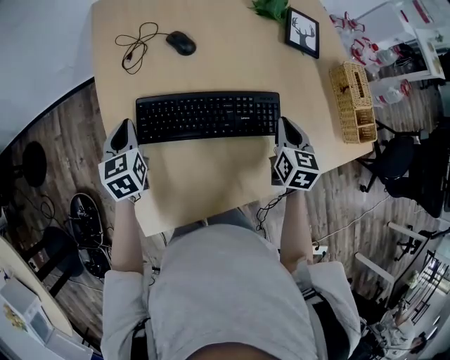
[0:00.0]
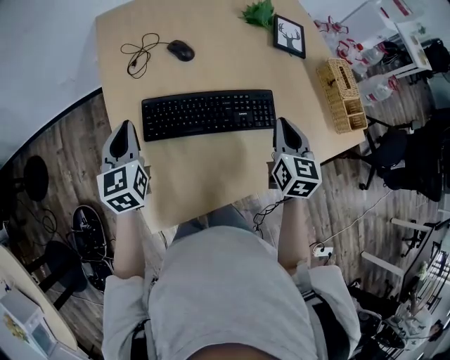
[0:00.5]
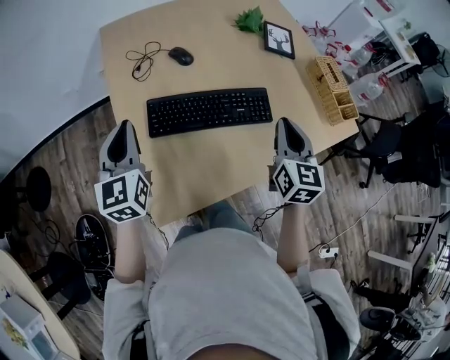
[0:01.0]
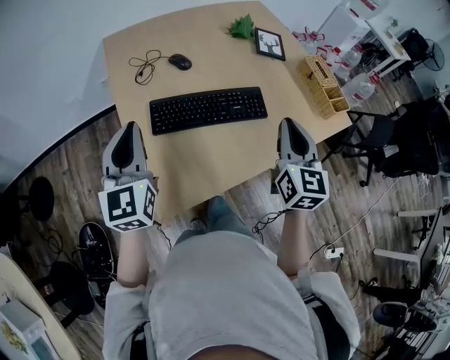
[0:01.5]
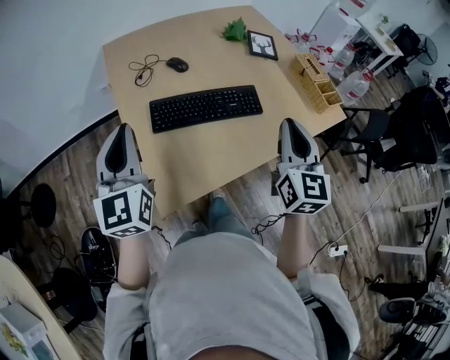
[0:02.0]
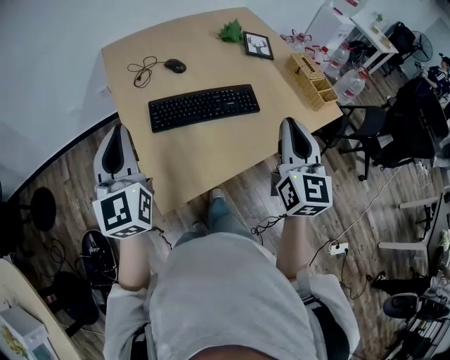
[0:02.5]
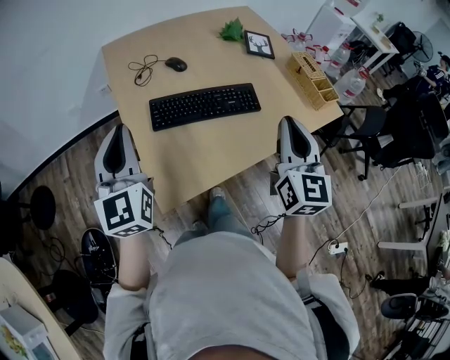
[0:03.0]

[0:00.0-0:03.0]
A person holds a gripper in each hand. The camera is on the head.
0:00.0 to 0:01.5: Both grippers travel together upward and backward, roughly 25 cm. The left gripper angles its fingers upward, by some 30 degrees. Meanwhile the right gripper turns by roughly 30 degrees.
0:01.5 to 0:03.0: The right gripper heads backward and upward, covering roughly 10 cm. Meanwhile the left gripper is displaced backward by some 5 cm.

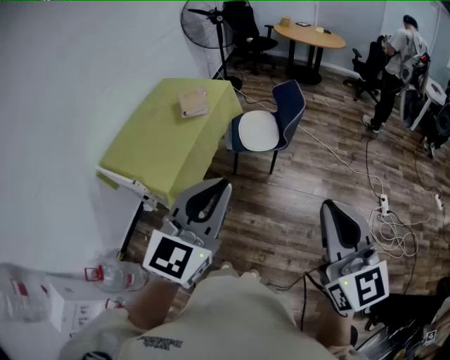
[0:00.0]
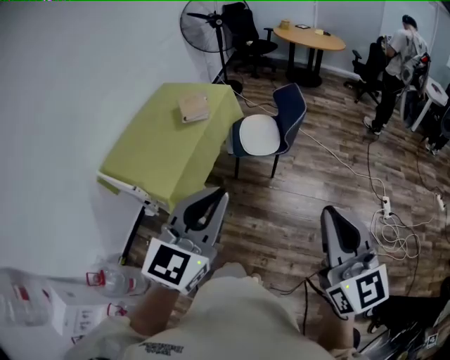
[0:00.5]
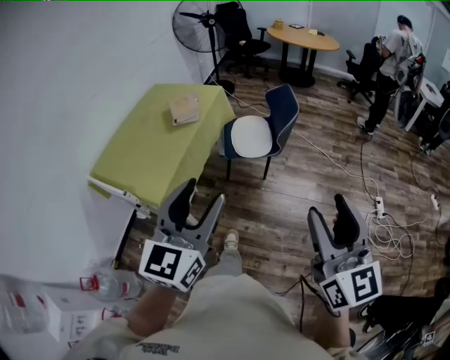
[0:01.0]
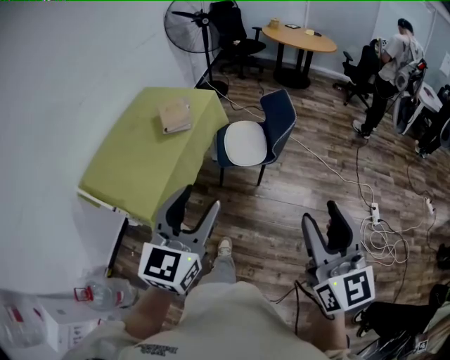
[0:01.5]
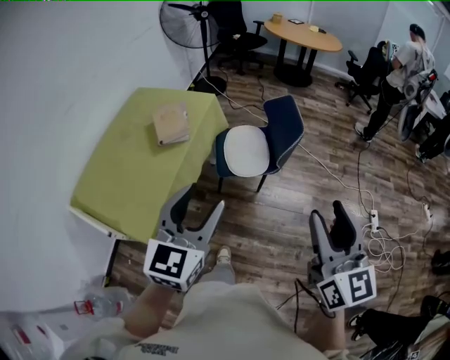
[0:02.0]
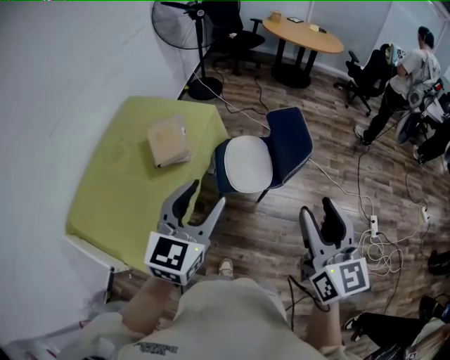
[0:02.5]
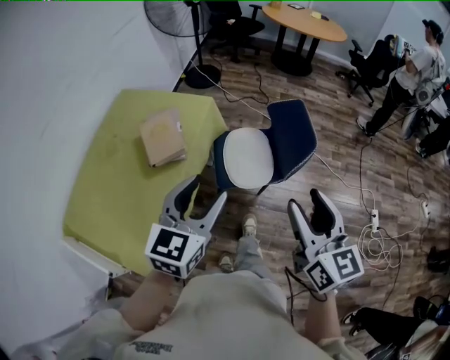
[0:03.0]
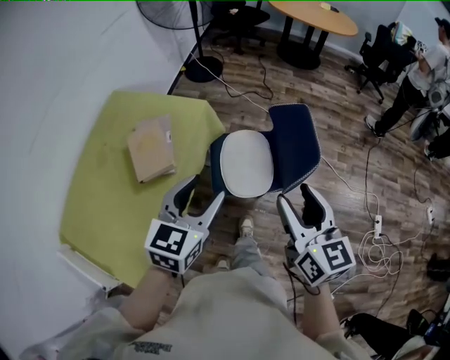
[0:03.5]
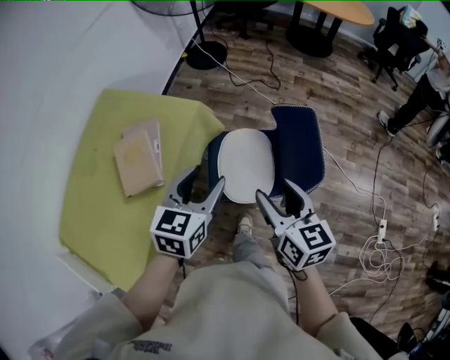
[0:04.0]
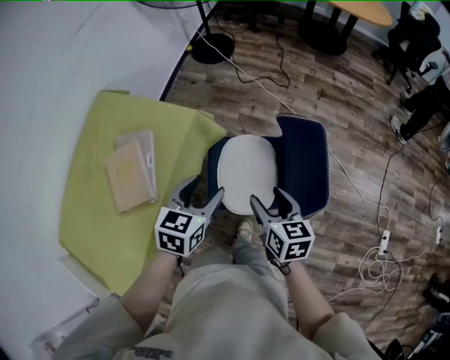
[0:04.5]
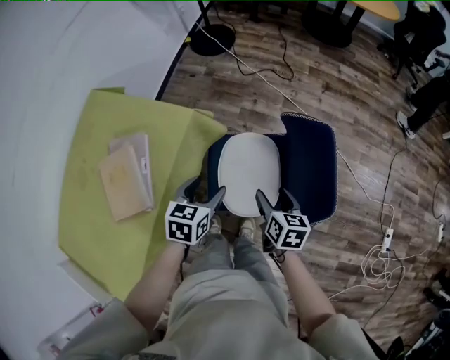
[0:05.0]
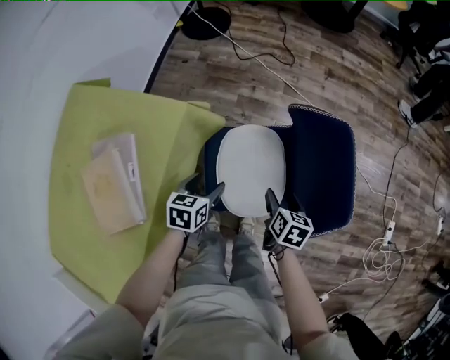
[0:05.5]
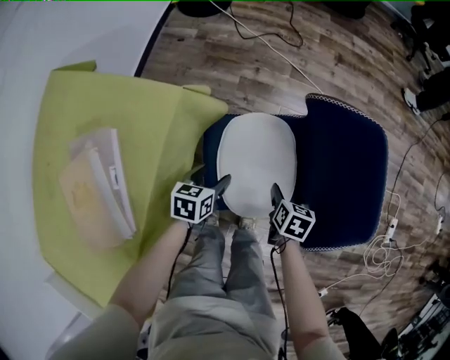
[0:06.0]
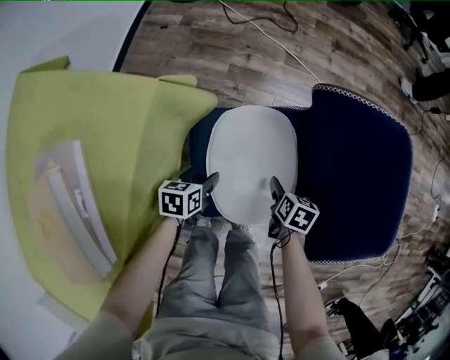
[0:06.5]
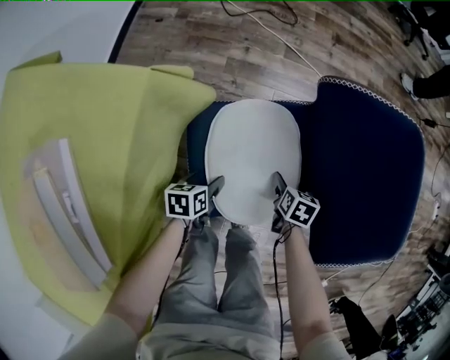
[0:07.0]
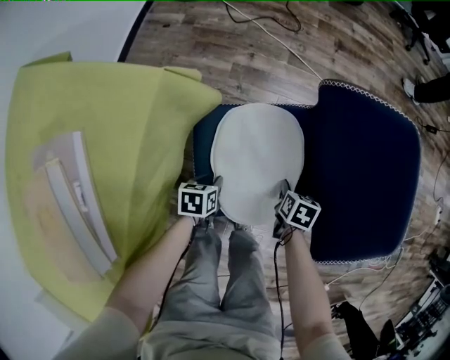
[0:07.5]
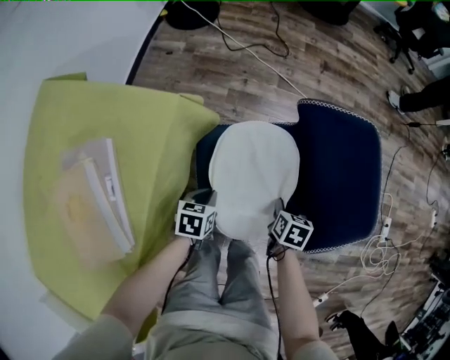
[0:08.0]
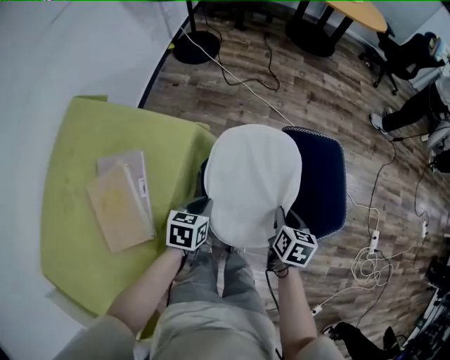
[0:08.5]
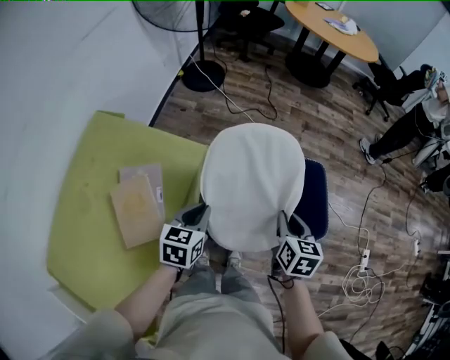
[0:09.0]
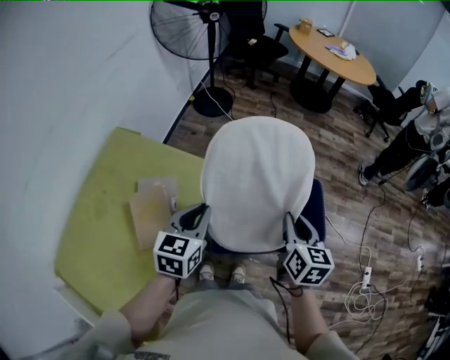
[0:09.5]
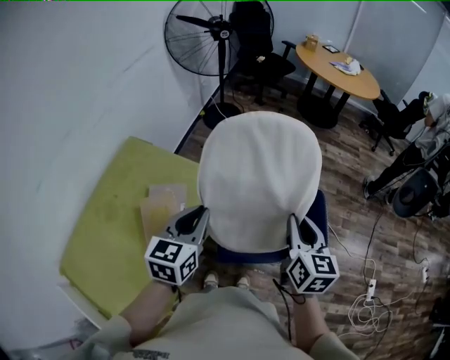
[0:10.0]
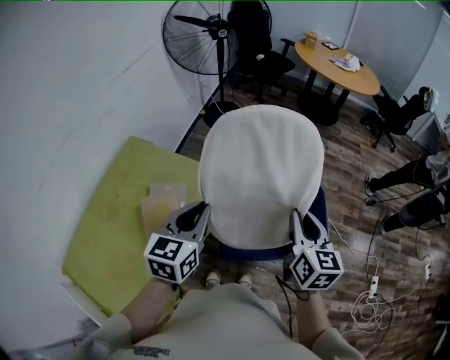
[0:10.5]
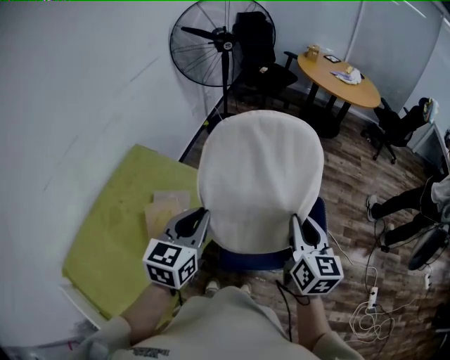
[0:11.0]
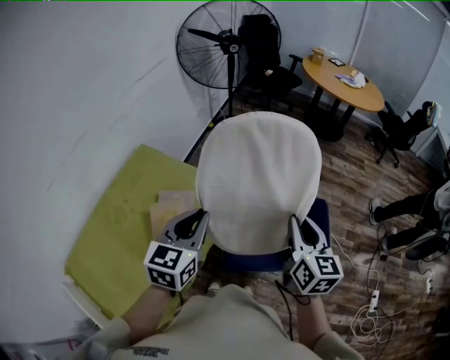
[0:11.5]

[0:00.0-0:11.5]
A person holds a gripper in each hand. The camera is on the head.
0:00.0 to 0:02.0: The grippers both shift forward by roughly 25 cm. The right gripper opens its fingers. Meanwhile the left gripper opens up.
0:02.0 to 0:04.0: The pair of grippers is taken forward, roughly 50 cm. The right gripper turns by approximately 30 degrees. Meanwhile the left gripper turns by some 20 degrees.
0:04.0 to 0:06.0: Both grippers travel together downward, some 40 cm. The right gripper tips its fingers downward by approximately 40 degrees; the left gripper swivels about 30 degrees.
0:06.0 to 0:07.5: Both grippers move downward, approximately 15 cm. The left gripper closes its fingers, while the right gripper closes up.
0:07.5 to 0:09.5: Both grippers travel together upward, roughly 60 cm. The right gripper tips its fingers upward by about 40 degrees; the left gripper angles its fingers upward, by roughly 30 degrees.
0:09.5 to 0:11.5: The grippers both shift upward by roughly 10 cm.

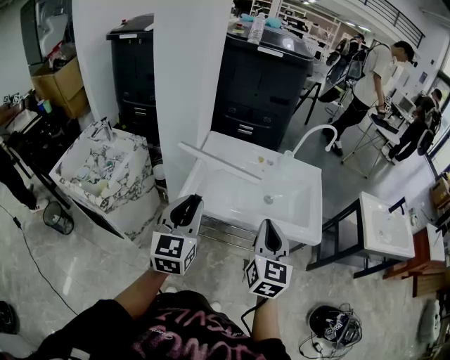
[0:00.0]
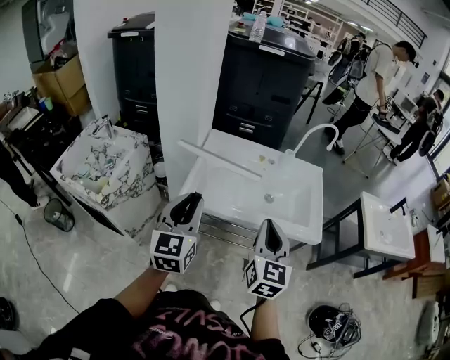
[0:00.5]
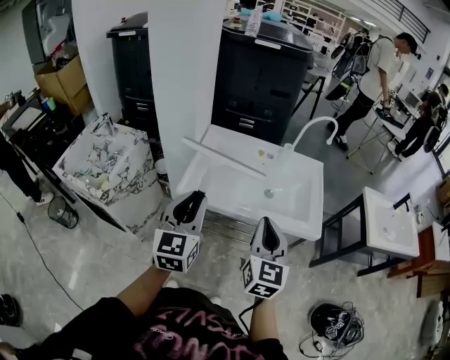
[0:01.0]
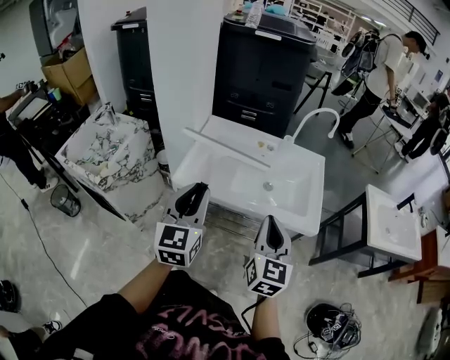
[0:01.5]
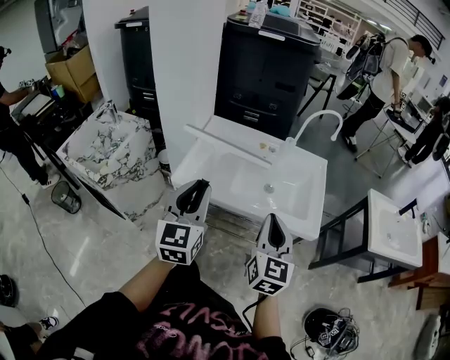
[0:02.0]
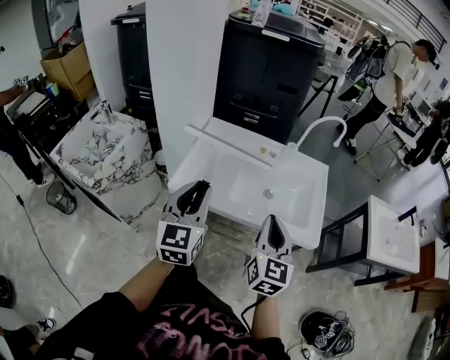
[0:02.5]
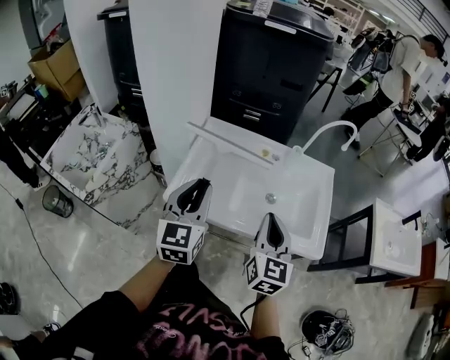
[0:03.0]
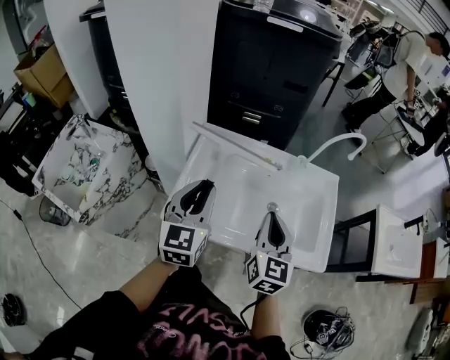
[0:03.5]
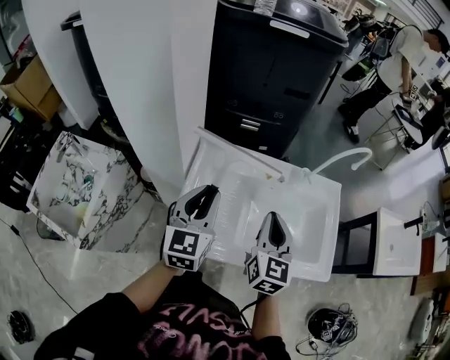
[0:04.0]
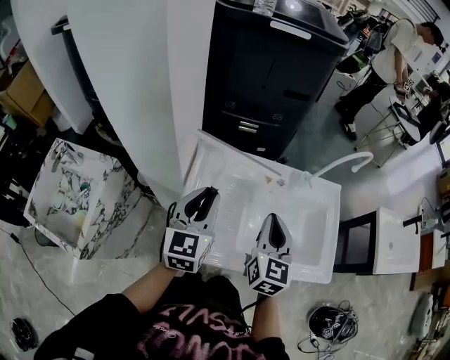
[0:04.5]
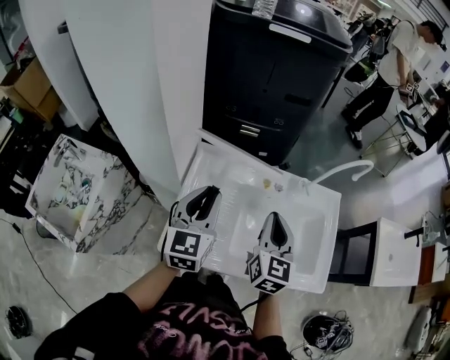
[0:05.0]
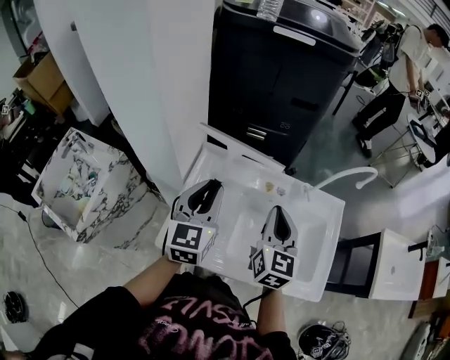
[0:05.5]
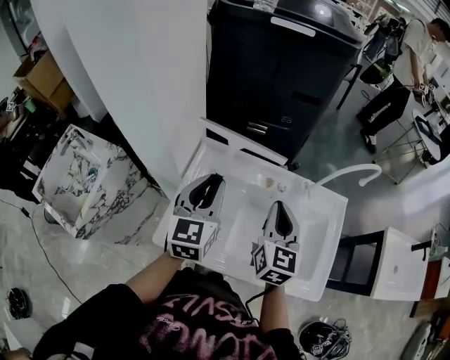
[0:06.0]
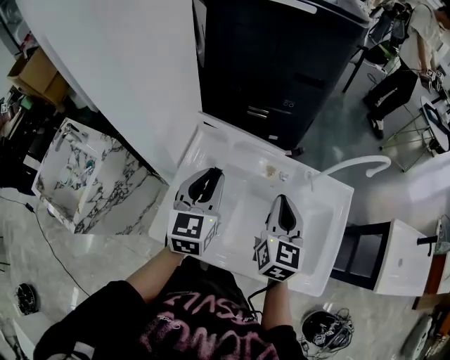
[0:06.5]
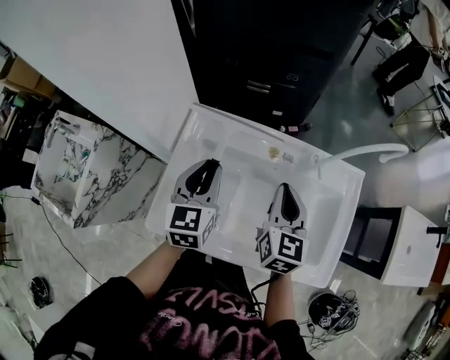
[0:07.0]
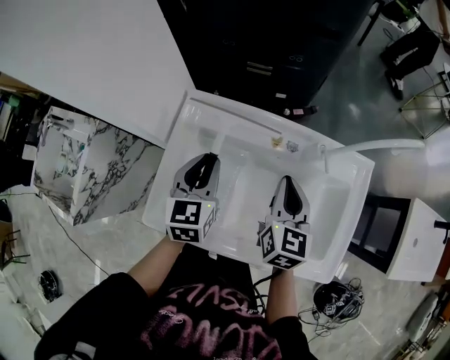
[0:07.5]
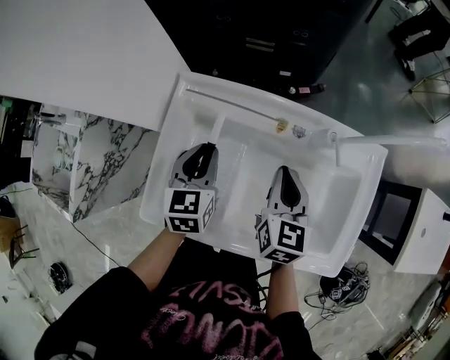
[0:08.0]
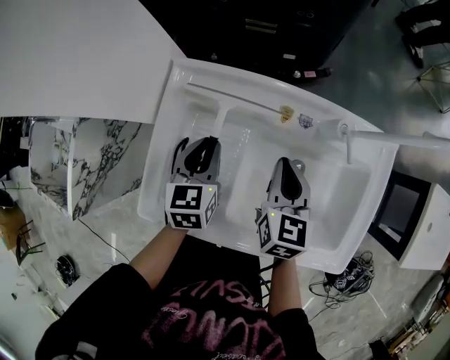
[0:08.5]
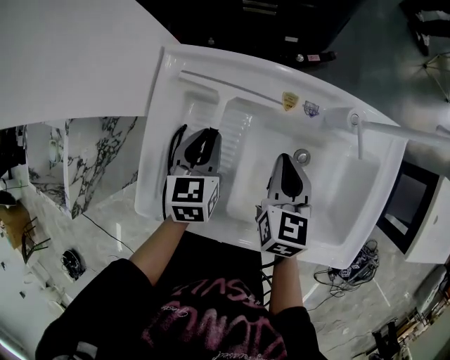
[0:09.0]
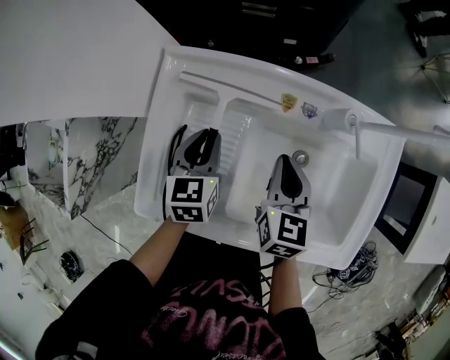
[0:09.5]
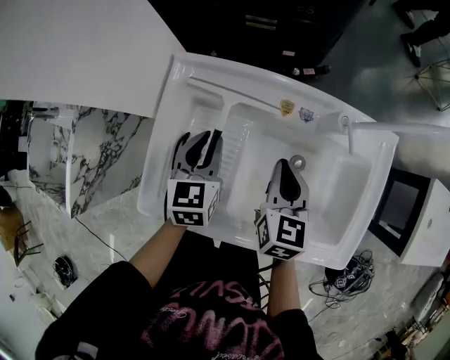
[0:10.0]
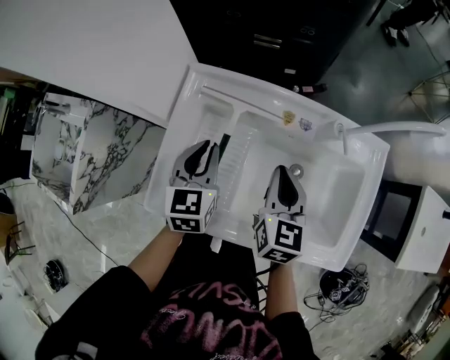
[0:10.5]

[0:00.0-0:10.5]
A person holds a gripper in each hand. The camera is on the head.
0:00.0 to 0:02.0: Both grippers move to the right, roughly 10 cm.
0:02.0 to 0:04.0: The two grippers go approximately 30 cm forward.
0:04.0 to 0:06.5: The right gripper goes some 10 cm forward and to the right; the left gripper moves forward, roughly 10 cm.
0:06.5 to 0:08.5: The grippers both shift downward by about 15 cm. The left gripper changes its angle by some 20 degrees.
0:08.5 to 0:10.5: The right gripper shifts by approximately 5 cm; the left gripper shifts approximately 5 cm upward.

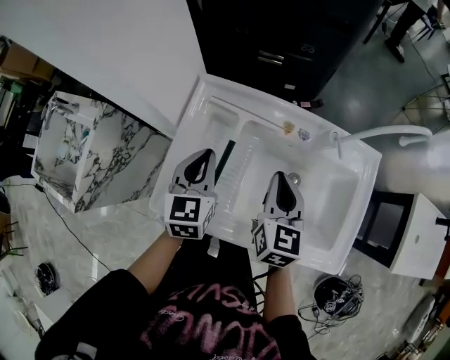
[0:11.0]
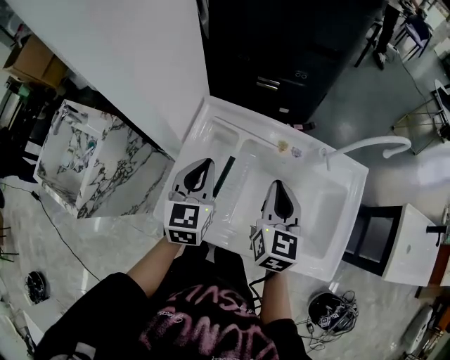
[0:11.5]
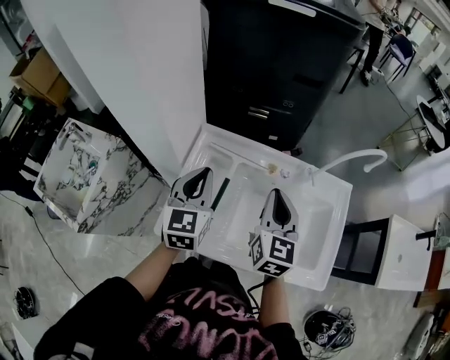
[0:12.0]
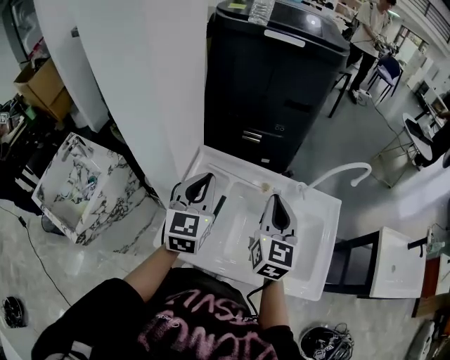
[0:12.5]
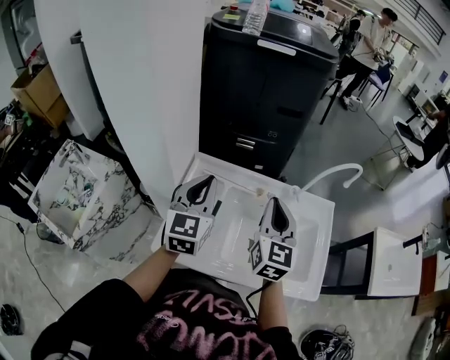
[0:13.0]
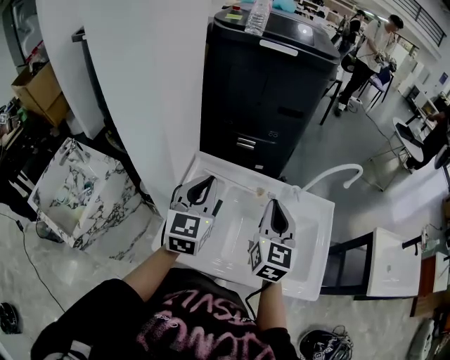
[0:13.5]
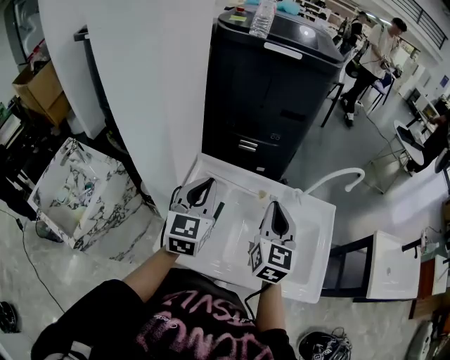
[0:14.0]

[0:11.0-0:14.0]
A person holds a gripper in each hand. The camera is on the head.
0:11.0 to 0:12.5: Both grippers move upward, roughly 15 cm.
0:12.5 to 0:14.0: The grippers stay close to where they were, moving slightly.
